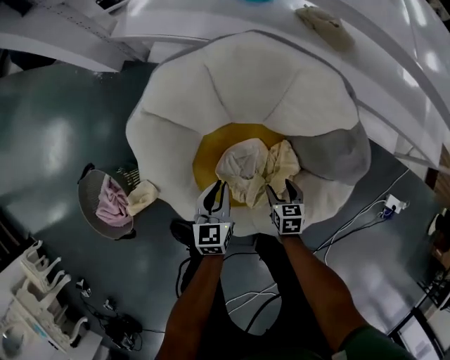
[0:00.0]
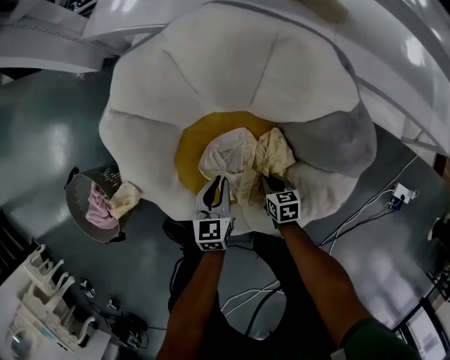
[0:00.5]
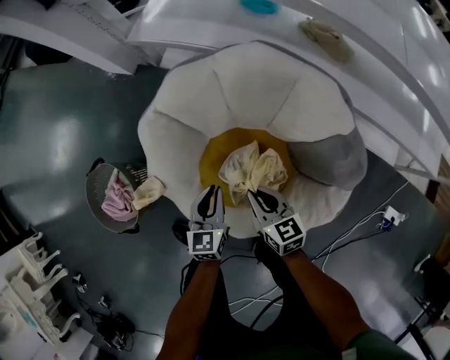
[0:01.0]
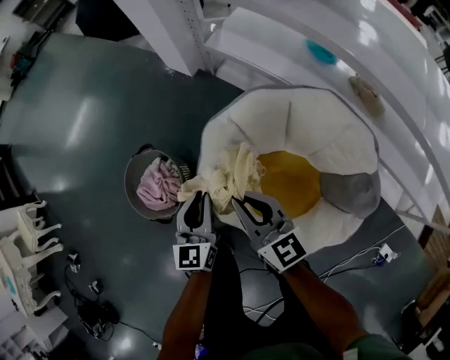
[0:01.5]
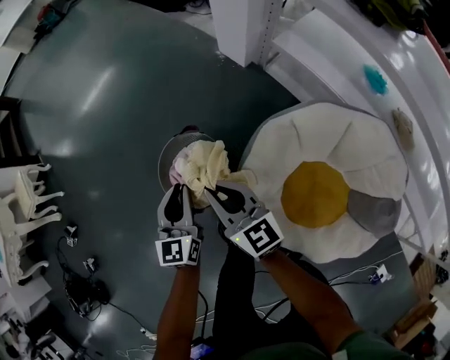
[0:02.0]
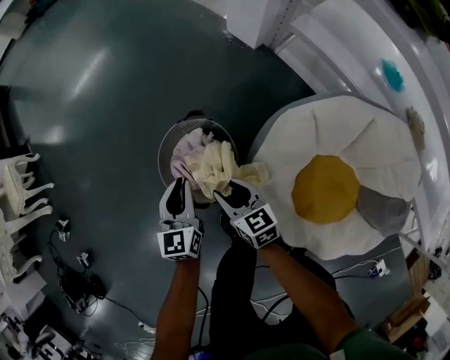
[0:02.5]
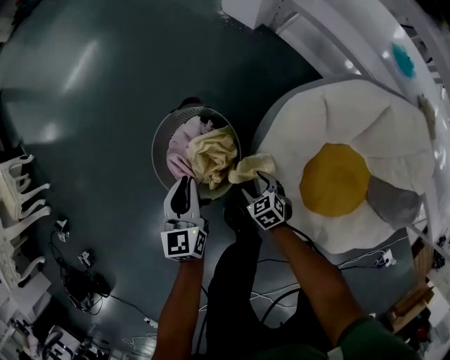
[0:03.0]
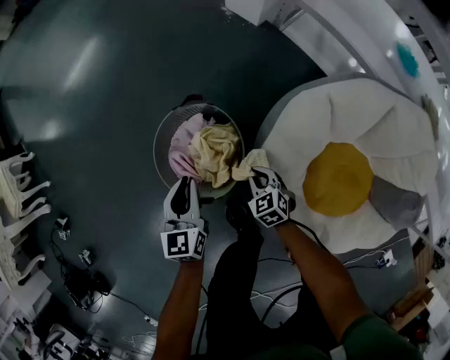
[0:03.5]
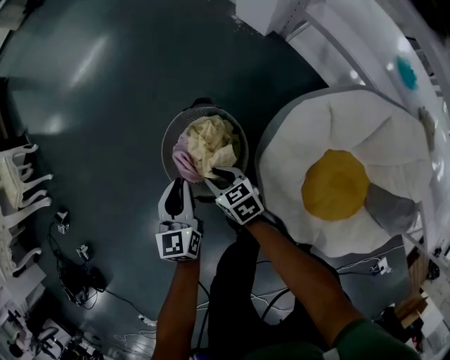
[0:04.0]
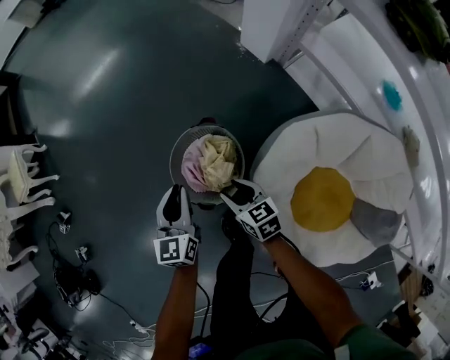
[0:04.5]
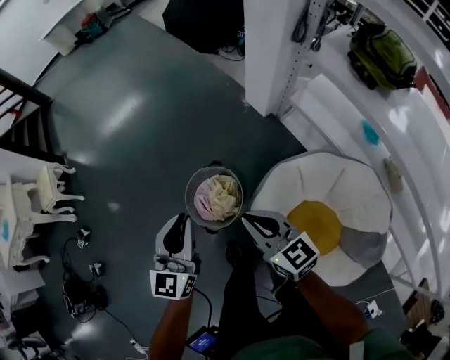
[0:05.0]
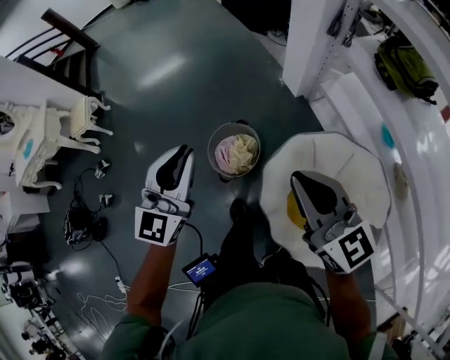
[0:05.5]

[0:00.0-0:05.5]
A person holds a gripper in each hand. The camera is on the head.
0:00.0 to 0:02.0: The pair of grippers is taken about 50 cm. The right gripper points its fingers approximately 50 degrees further upward, and closes its fingers. The left gripper changes its angle by approximately 40 degrees.
0:02.0 to 0:03.5: The right gripper goes about 35 cm downward, tilts its fingers roughly 40 degrees downward, and opens, then closes once more, while the left gripper moves downward, roughly 20 cm.
0:03.5 to 0:05.5: The grippers both shift upward by approximately 70 cm. The right gripper tips its fingers upward by approximately 50 degrees, and opens and closes again. The left gripper changes its angle by about 40 degrees.

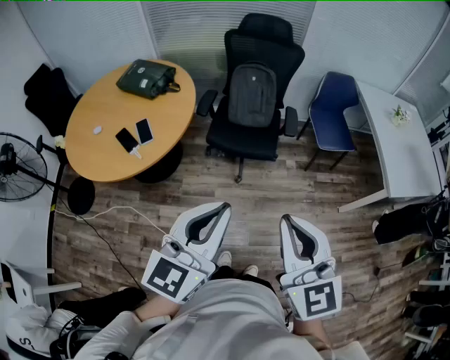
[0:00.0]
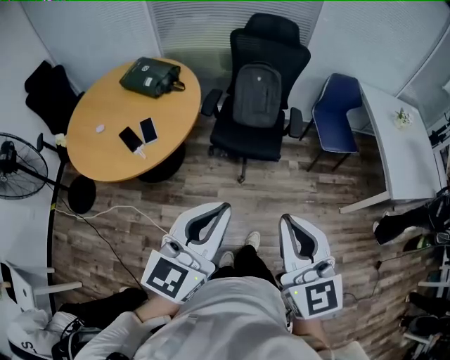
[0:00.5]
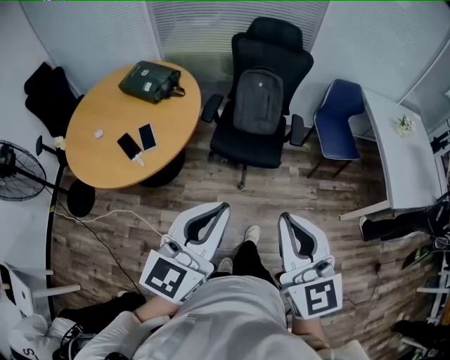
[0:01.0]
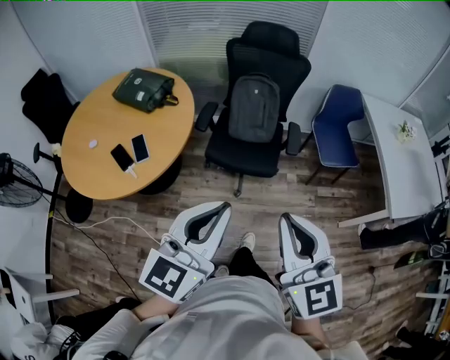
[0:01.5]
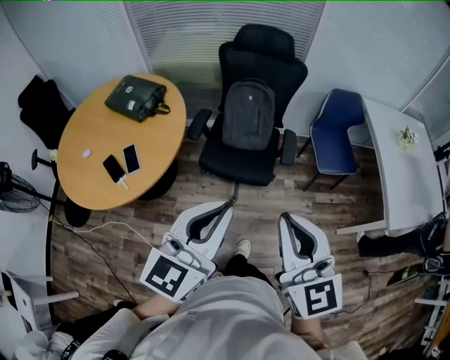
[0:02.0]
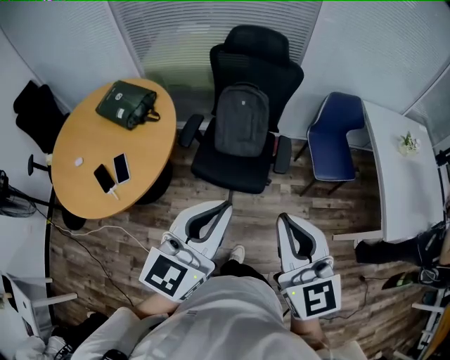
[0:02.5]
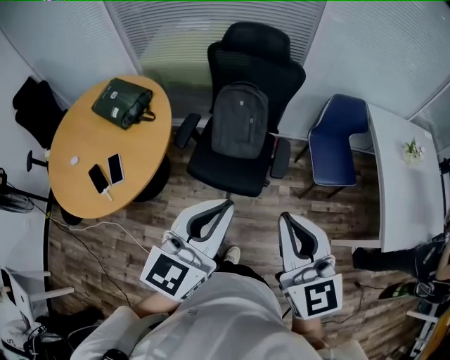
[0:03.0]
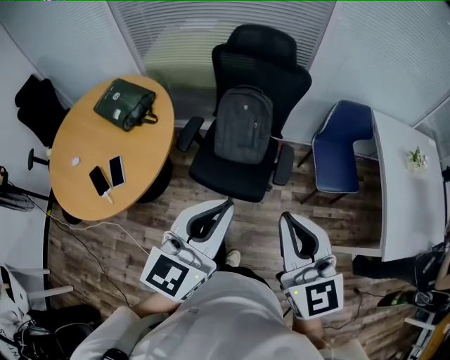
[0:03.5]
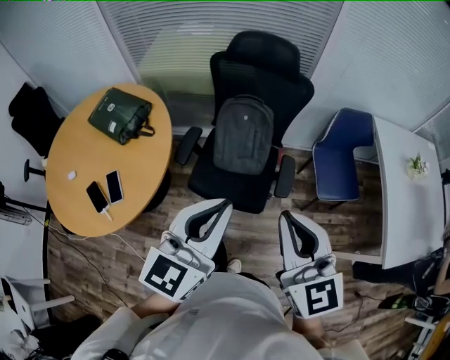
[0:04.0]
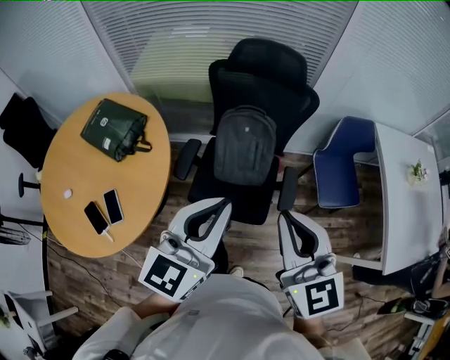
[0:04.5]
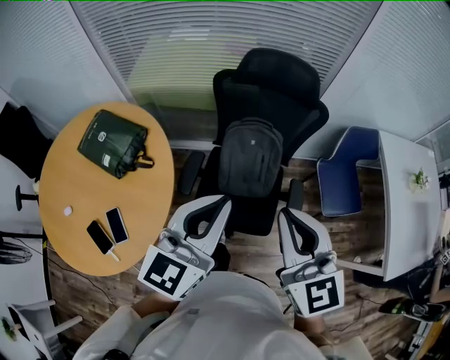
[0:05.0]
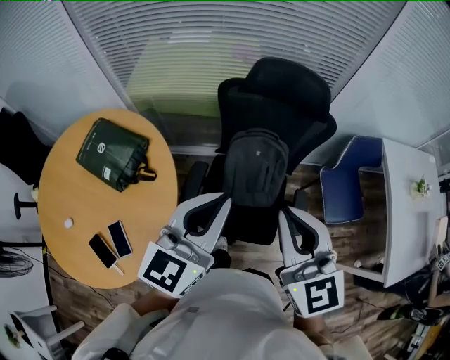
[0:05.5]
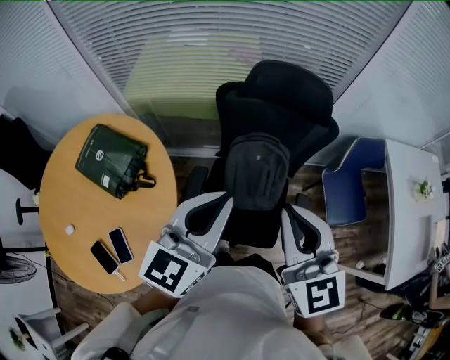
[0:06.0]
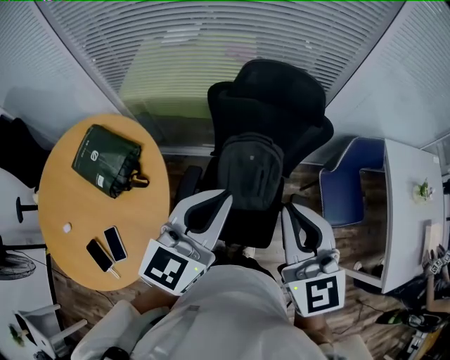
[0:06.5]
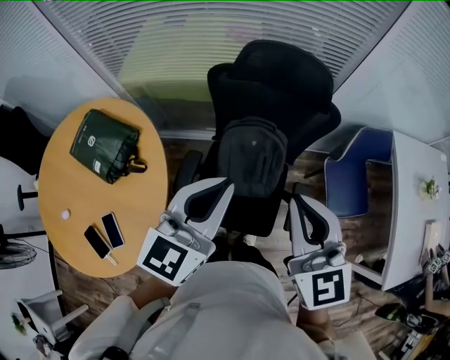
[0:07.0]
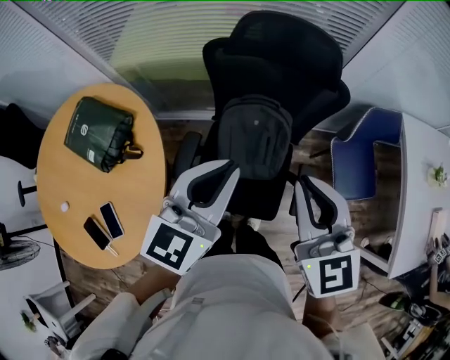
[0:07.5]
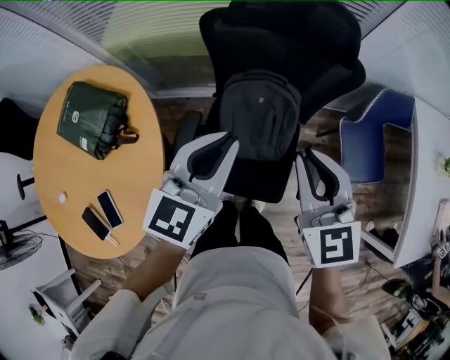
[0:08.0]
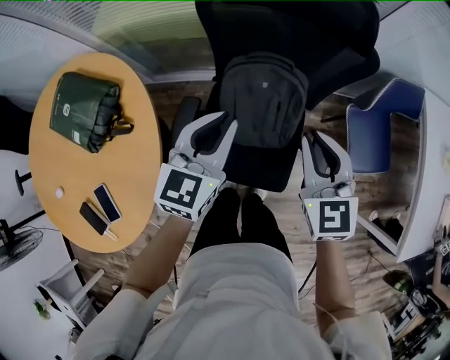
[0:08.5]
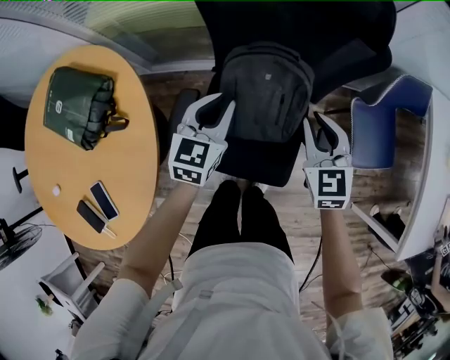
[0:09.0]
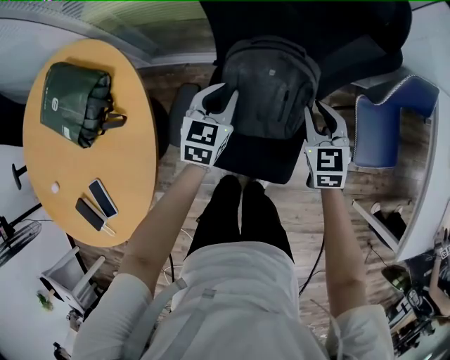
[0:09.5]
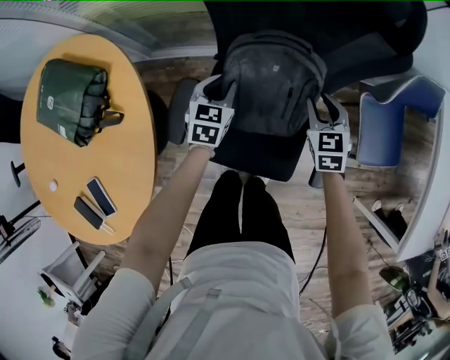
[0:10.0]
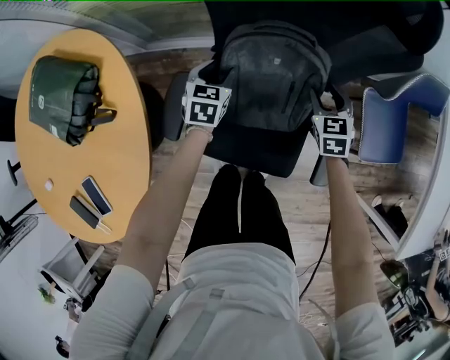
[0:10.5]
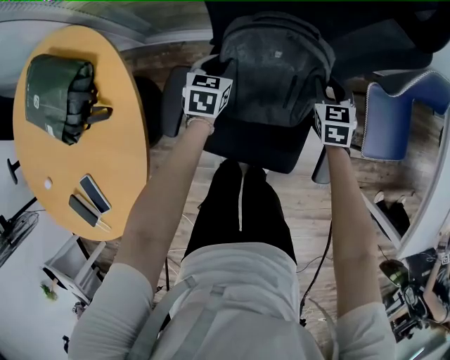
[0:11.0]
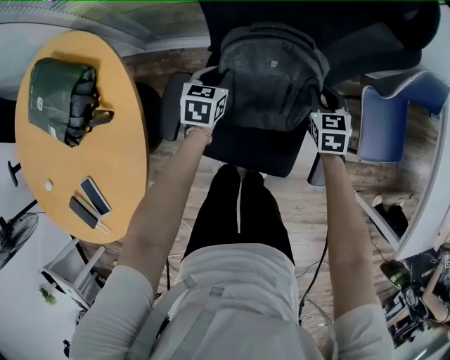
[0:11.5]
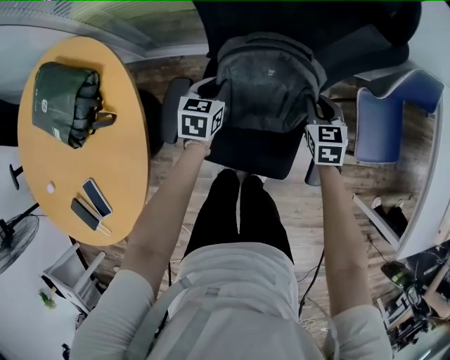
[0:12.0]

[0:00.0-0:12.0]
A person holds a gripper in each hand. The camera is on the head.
0:00.0 to 0:02.0: Both grippers travel together forward, some 20 cm.
0:02.0 to 0:04.0: Both grippers move forward, roughly 20 cm.
0:04.0 to 0:06.0: Both grippers move forward and to the left, approximately 30 cm.
0:06.0 to 0:08.0: The left gripper goes roughly 15 cm downward and forward; the right gripper shifts about 20 cm downward, forward and to the right.
0:08.0 to 0:10.0: The left gripper travels downward by some 35 cm, and changes its angle by approximately 30 degrees. The right gripper is displaced downward and forward by roughly 35 cm, and changes its angle by about 20 degrees.

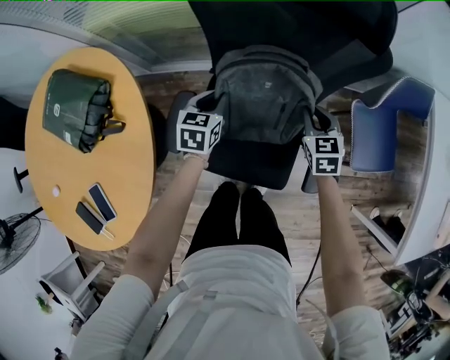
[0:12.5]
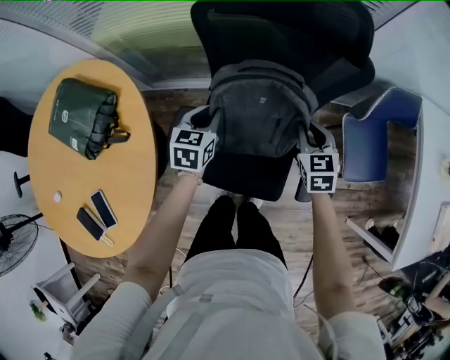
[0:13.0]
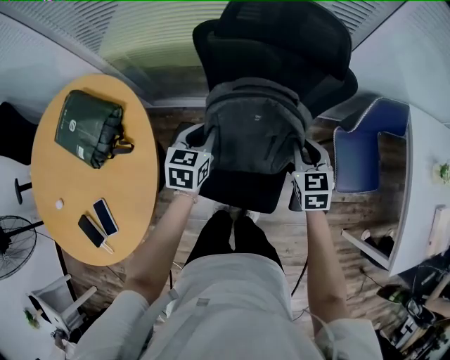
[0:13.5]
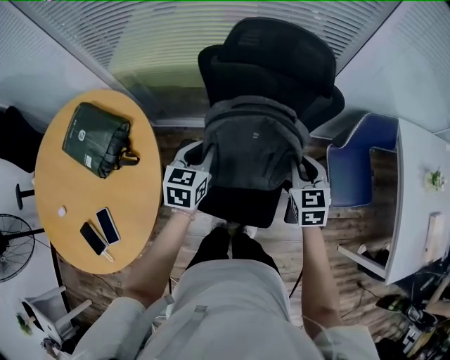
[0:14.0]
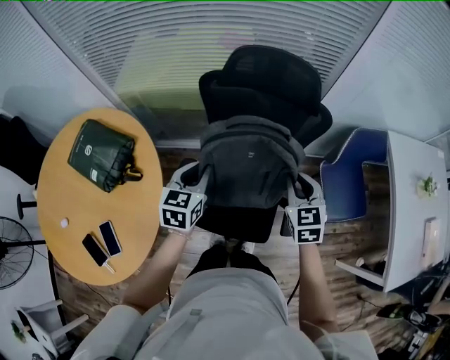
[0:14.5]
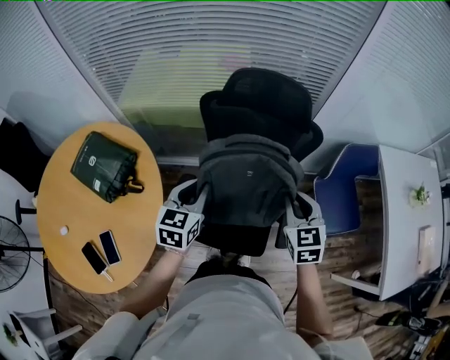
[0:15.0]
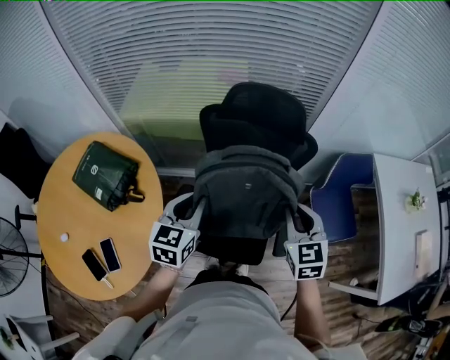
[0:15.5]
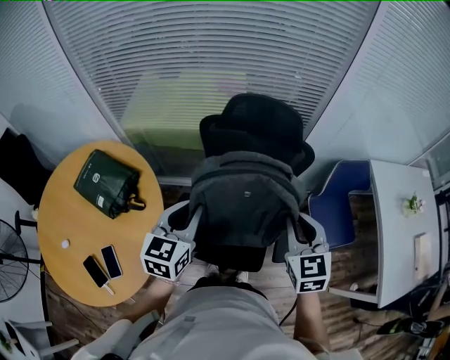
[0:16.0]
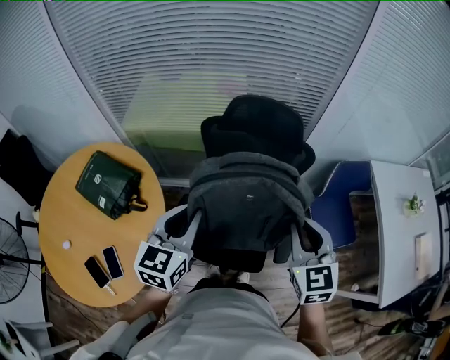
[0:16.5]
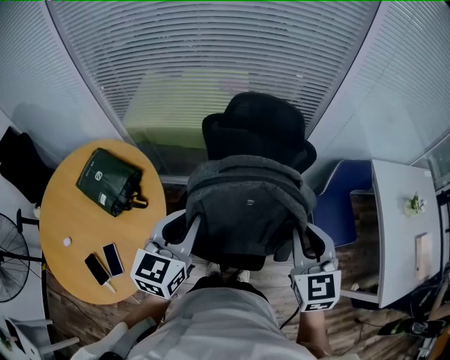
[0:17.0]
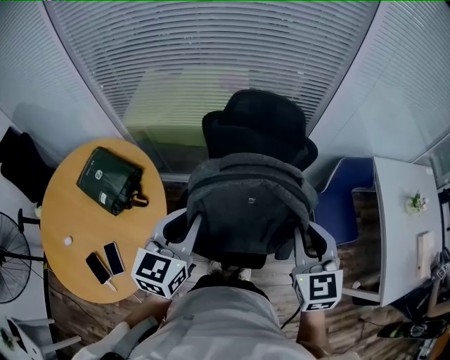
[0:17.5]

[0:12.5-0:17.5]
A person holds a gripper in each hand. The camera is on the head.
0:12.5 to 0:15.0: Both grippers travel together upward and backward, approximately 30 cm.
0:15.0 to 0:17.5: Both grippers travel together upward and backward, roughly 15 cm.

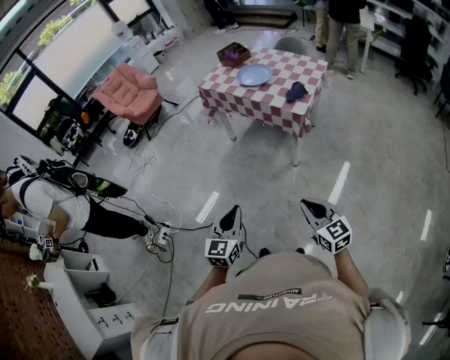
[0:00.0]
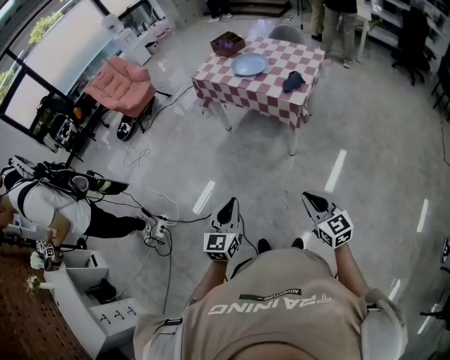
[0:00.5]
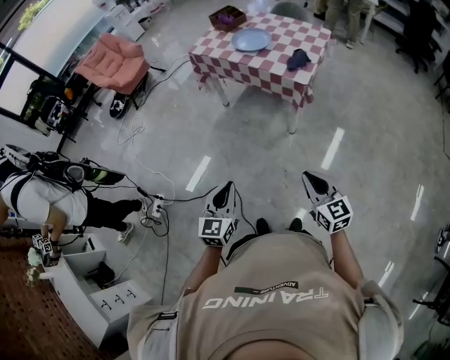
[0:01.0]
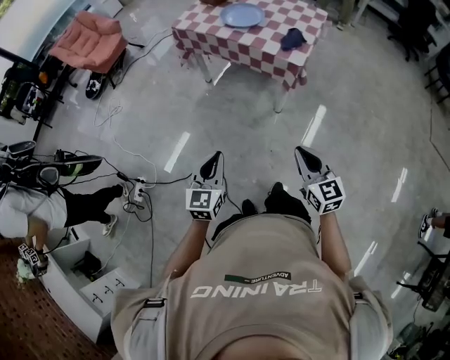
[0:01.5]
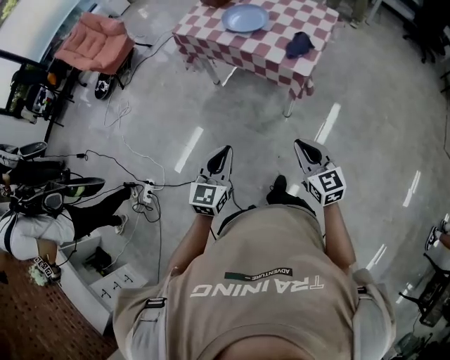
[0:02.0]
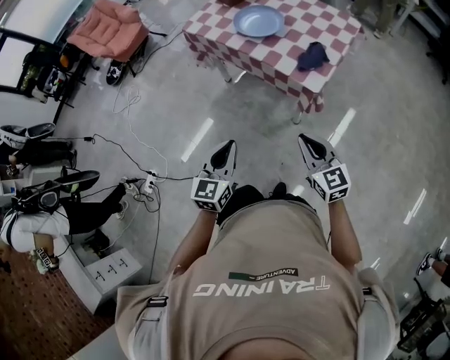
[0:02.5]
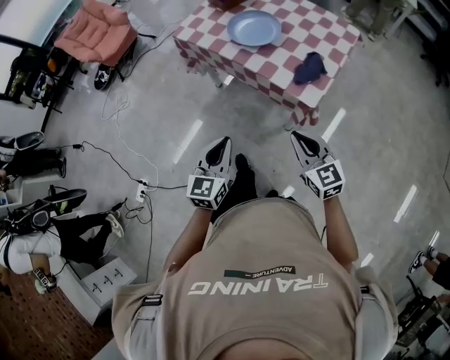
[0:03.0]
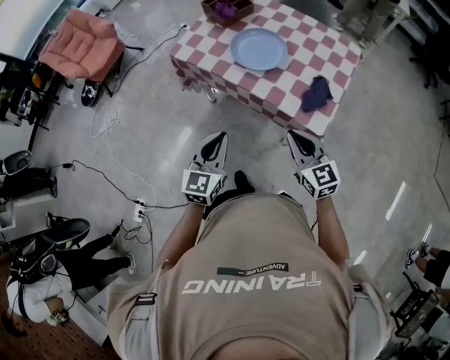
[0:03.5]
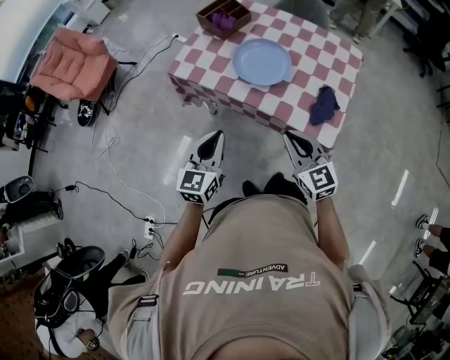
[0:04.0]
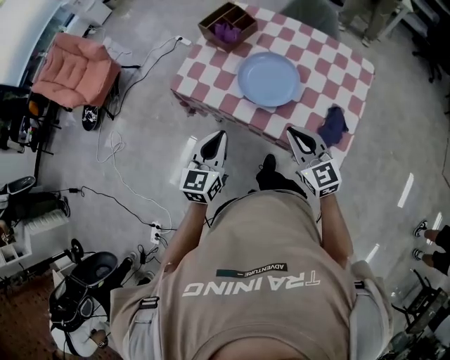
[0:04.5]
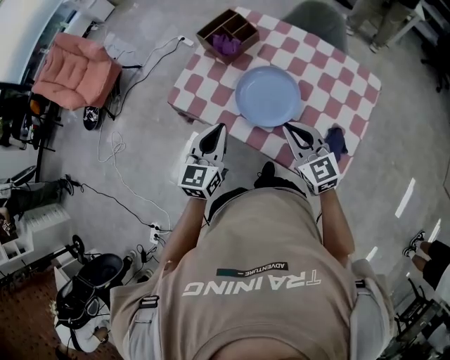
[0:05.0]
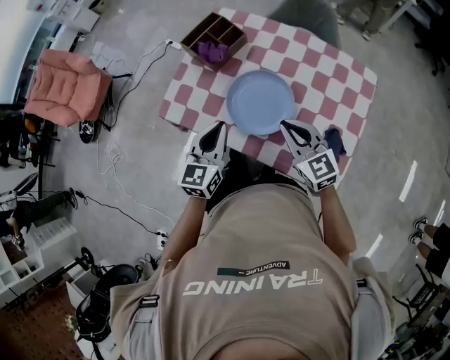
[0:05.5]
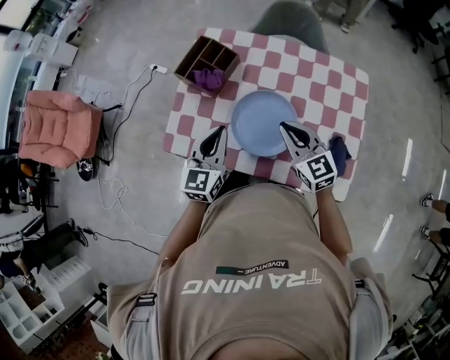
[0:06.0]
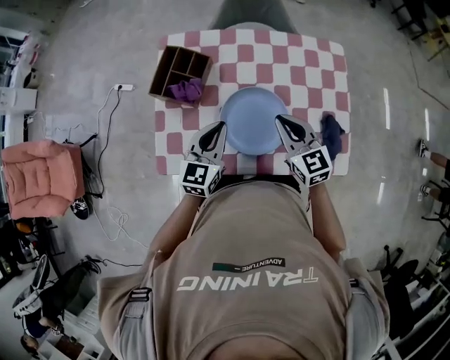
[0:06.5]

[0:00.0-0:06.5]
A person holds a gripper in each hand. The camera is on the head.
0:00.0 to 0:02.0: Both grippers travel together forward, approximately 20 cm.
0:02.0 to 0:04.5: The two grippers travel together, forward, approximately 50 cm.
0:04.5 to 0:06.5: The left gripper ends up about 30 cm from where it was, and turns by some 30 degrees. The right gripper shifts by approximately 25 cm, and turns by some 30 degrees.
